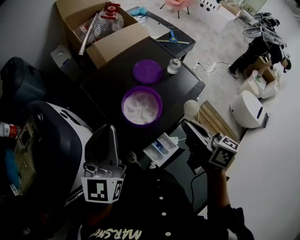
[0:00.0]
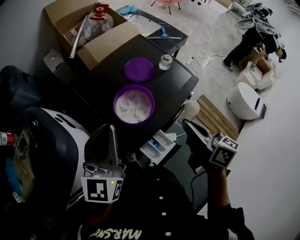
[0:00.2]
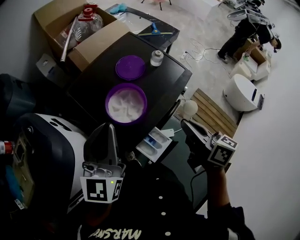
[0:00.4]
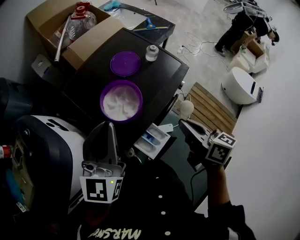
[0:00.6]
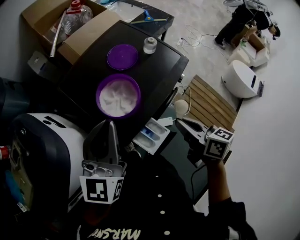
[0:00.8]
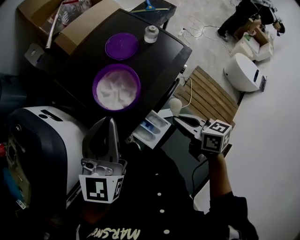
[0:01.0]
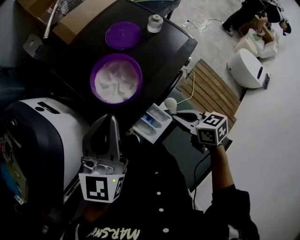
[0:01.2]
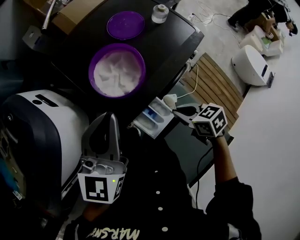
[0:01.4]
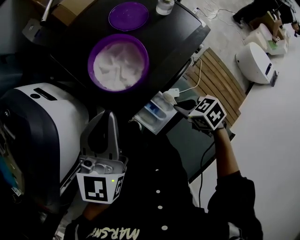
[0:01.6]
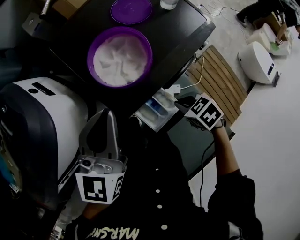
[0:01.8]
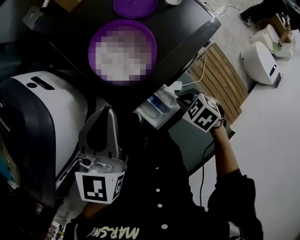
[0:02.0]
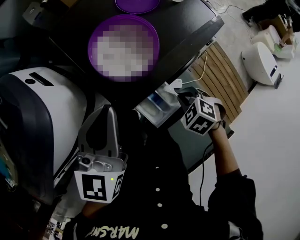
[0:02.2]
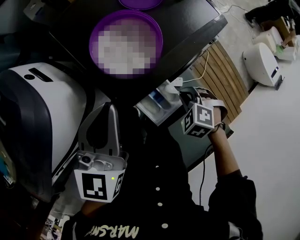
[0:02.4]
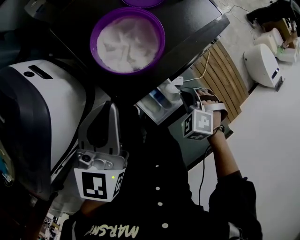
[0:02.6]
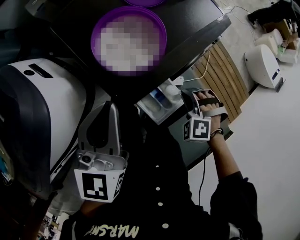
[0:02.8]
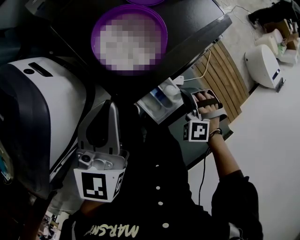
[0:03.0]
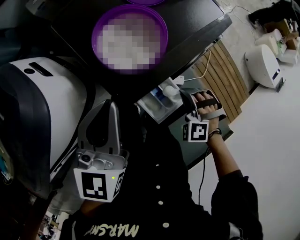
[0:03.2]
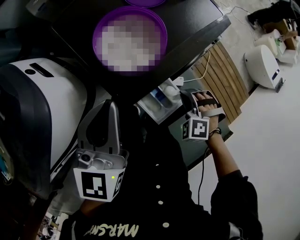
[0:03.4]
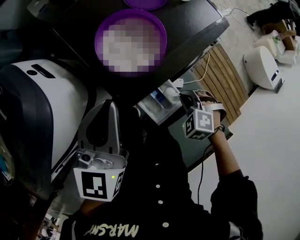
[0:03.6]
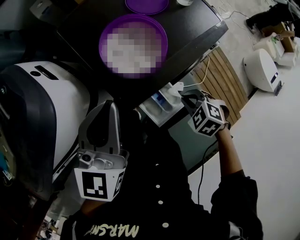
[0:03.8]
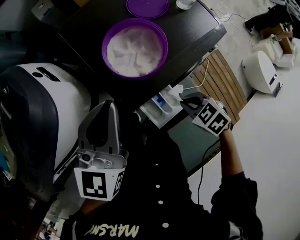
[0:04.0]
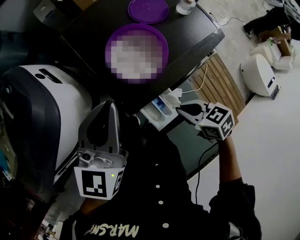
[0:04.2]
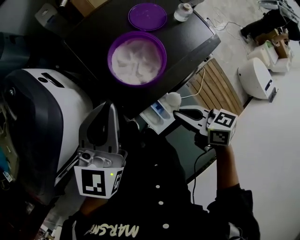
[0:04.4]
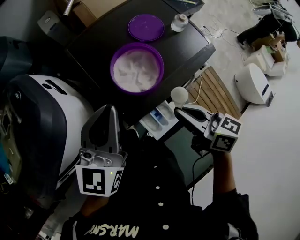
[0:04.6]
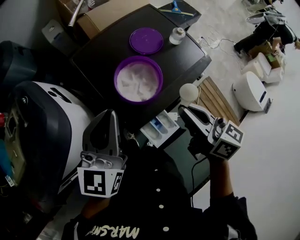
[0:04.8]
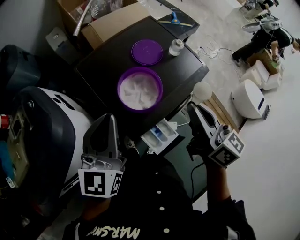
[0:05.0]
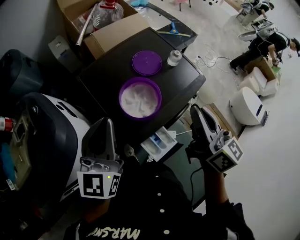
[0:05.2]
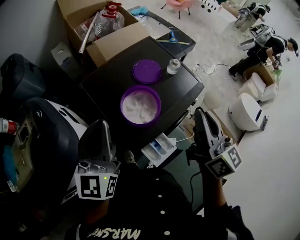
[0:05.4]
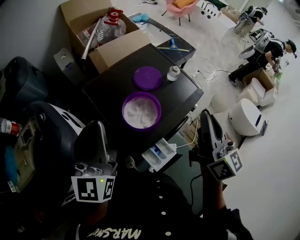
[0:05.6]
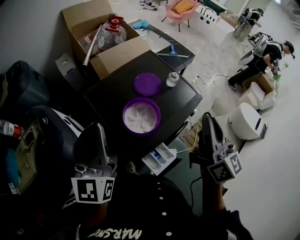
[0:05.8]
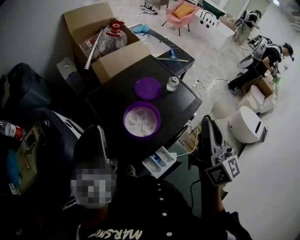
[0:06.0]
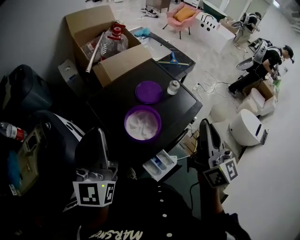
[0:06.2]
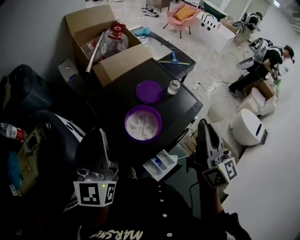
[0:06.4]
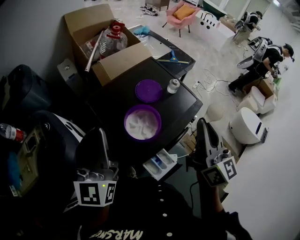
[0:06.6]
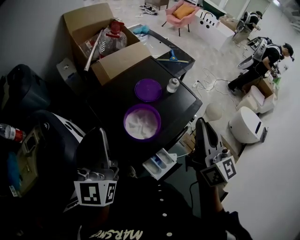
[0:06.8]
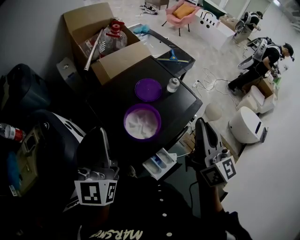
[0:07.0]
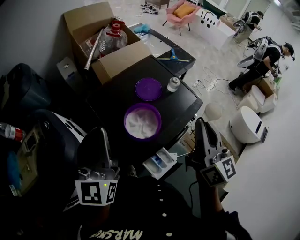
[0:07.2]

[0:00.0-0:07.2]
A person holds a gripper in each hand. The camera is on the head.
0:00.0 to 0:01.4: The right gripper shifts about 25 cm downward, and tips its fingers downward by approximately 40 degrees, while the left gripper heads downward and to the right, covering roughly 10 cm.
0:01.4 to 0:02.8: The right gripper shifts approximately 5 cm downward, and twists about 70 degrees counterclockwise, seen from behind, while the left gripper changes place by about 5 cm.
0:02.8 to 0:04.4: The right gripper heads upward, covering roughly 15 cm, and rotates around the line of its fingers by about 80 degrees, clockwise from behind. The left gripper changes place by roughly 5 cm.
0:04.4 to 0:05.8: The right gripper is displaced upward by some 25 cm, and points its fingers roughly 40 degrees further upward; the left gripper is displaced upward and to the left by roughly 15 cm, and turns by some 20 degrees.
0:05.8 to 0:07.2: There are only small adjustments of the grippers.

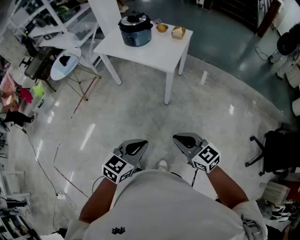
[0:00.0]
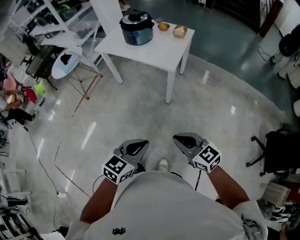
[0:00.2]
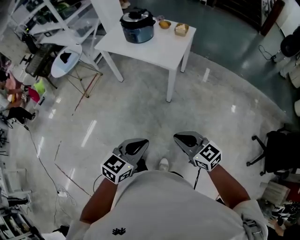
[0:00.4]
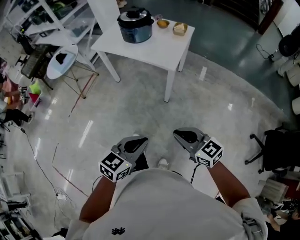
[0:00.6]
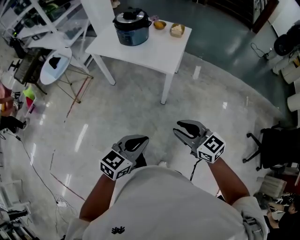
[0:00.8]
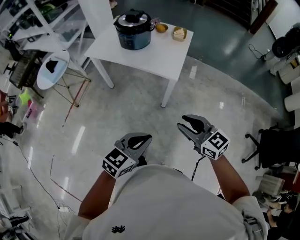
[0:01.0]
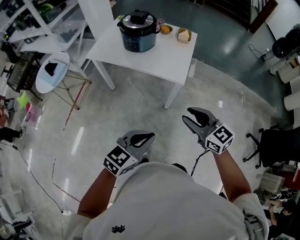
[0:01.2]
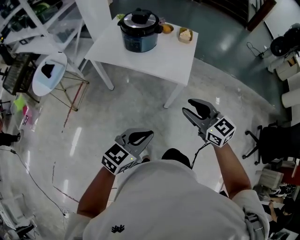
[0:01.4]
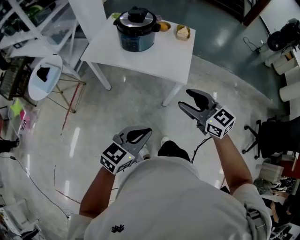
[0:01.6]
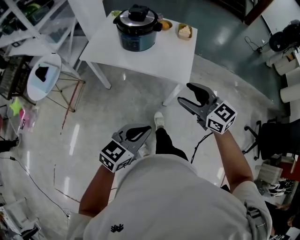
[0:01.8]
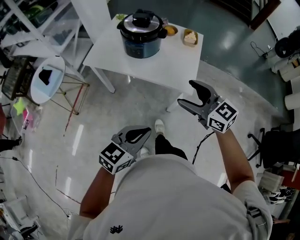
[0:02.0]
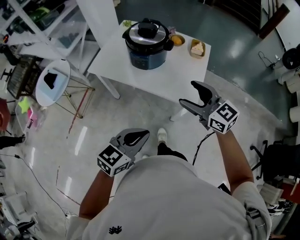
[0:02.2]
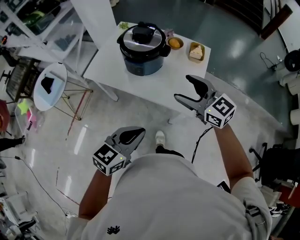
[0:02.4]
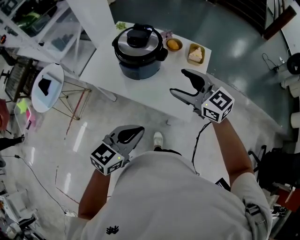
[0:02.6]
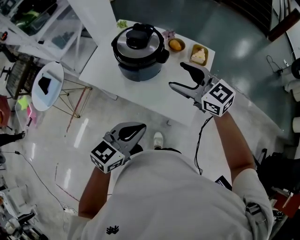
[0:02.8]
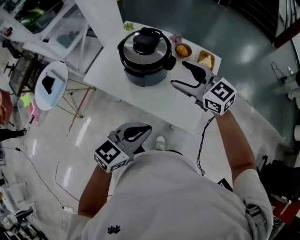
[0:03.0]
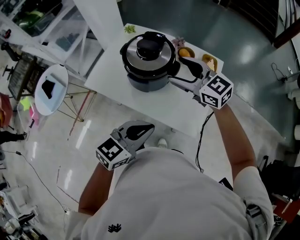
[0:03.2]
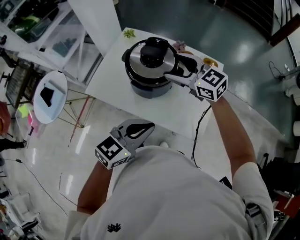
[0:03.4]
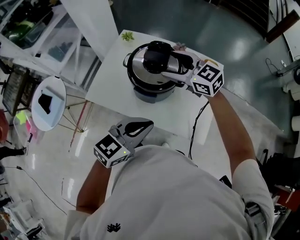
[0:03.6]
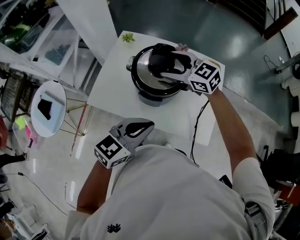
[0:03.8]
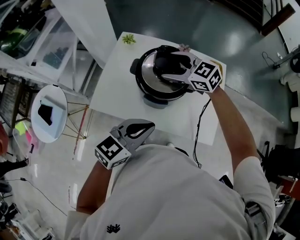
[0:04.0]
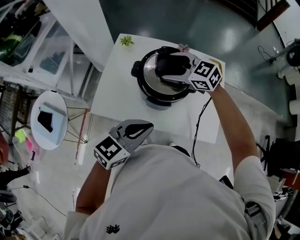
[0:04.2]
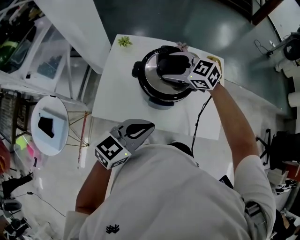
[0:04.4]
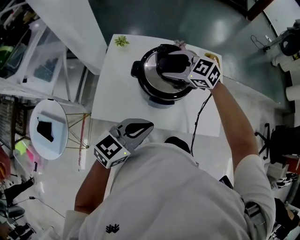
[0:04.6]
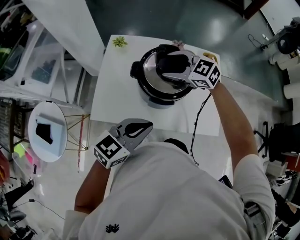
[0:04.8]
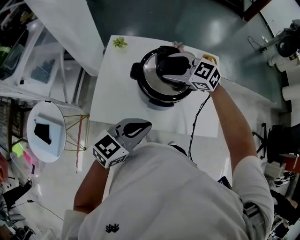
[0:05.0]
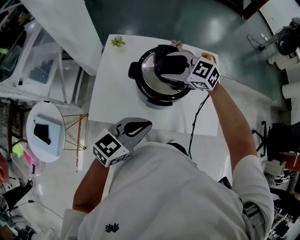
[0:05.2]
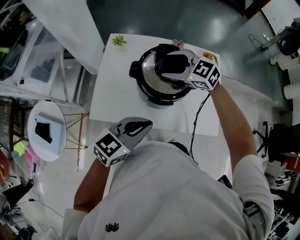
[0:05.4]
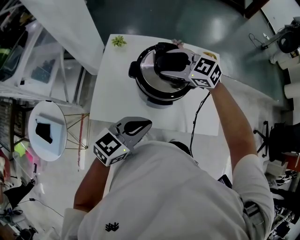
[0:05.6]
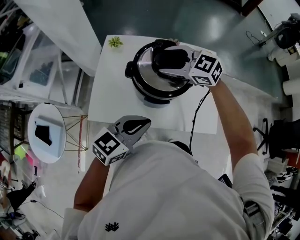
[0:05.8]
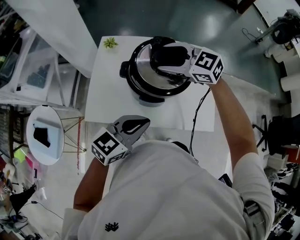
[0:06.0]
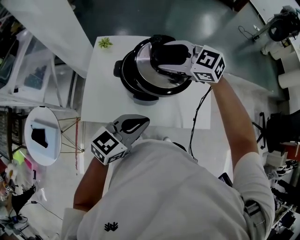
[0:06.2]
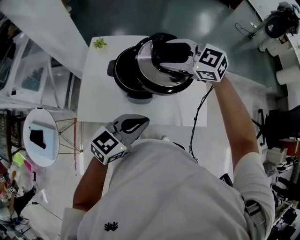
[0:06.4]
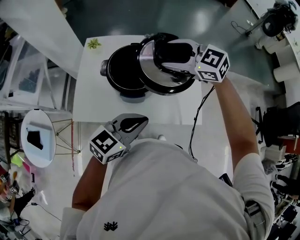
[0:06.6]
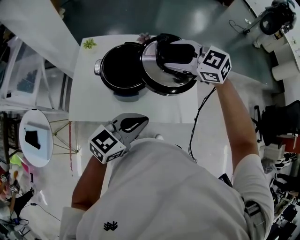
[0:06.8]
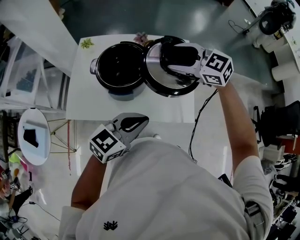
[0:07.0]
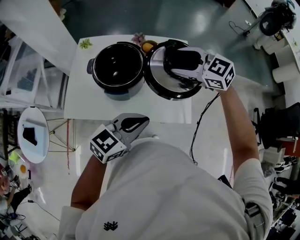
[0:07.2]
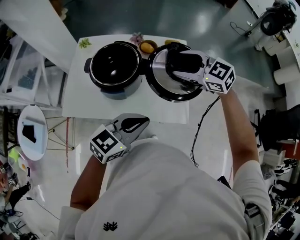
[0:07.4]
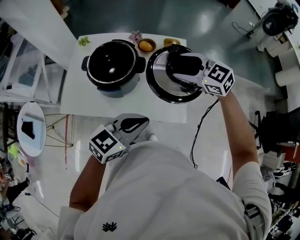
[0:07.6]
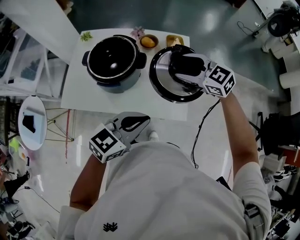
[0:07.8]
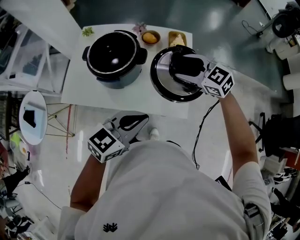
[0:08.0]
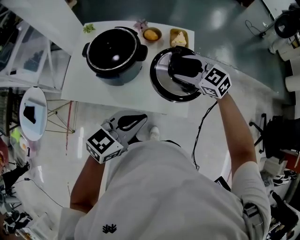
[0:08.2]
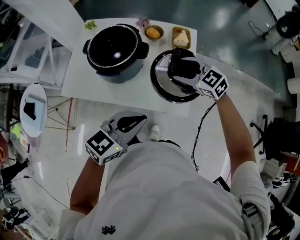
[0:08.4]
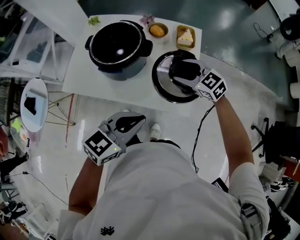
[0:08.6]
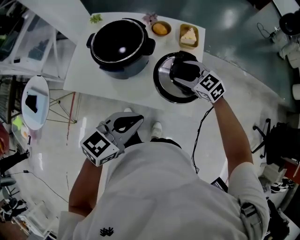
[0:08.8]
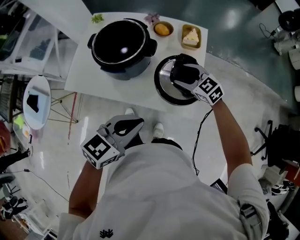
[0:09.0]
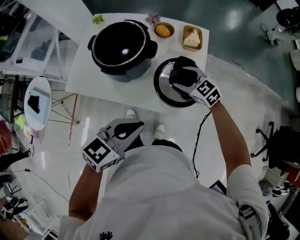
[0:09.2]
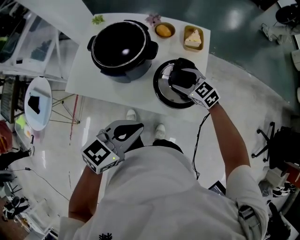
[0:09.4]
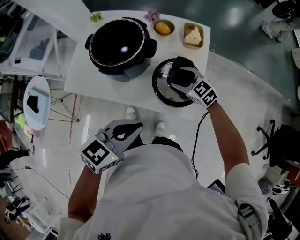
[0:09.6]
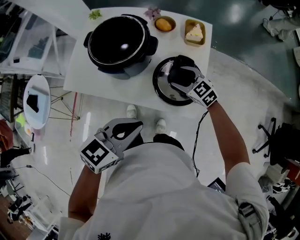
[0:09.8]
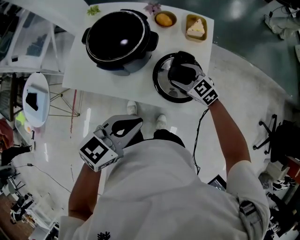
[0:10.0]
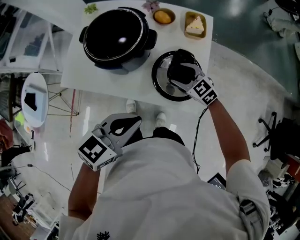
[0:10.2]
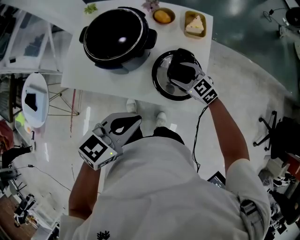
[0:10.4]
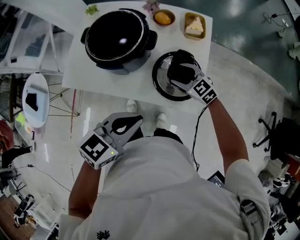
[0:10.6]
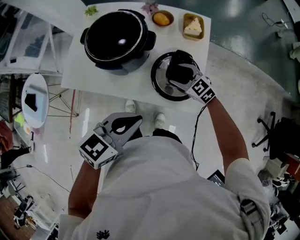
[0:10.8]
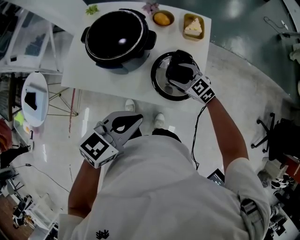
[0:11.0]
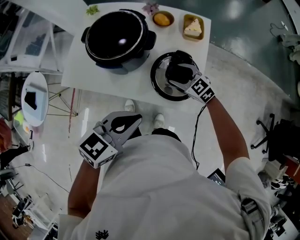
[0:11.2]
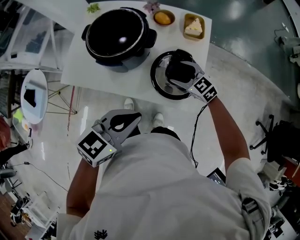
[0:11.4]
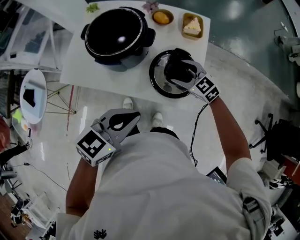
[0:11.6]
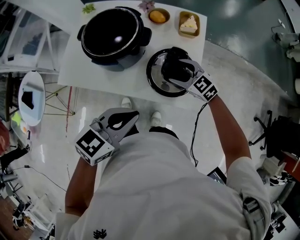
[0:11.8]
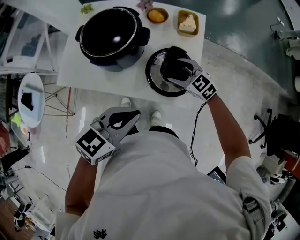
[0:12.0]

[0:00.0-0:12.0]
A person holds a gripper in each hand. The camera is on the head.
0:00.0 to 0:01.6: Both grippers move forward and to the left, some 35 cm. The right gripper opens its fingers.
0:01.6 to 0:03.0: The two grippers go some 35 cm forward.
0:03.0 to 0:04.4: The left gripper changes place by about 25 cm. Meanwhile the right gripper ends up roughly 25 cm from where it was.
0:04.4 to 0:06.0: The right gripper heads upward, covering approximately 5 cm.
0:06.0 to 0:07.6: The left gripper shifts by roughly 20 cm; the right gripper changes place by roughly 25 cm.
0:07.6 to 0:09.0: The right gripper is displaced downward by some 15 cm.
0:09.0 to 0:10.4: The right gripper shifts some 5 cm downward.
0:10.4 to 0:12.0: There are only small adjustments of the grippers.

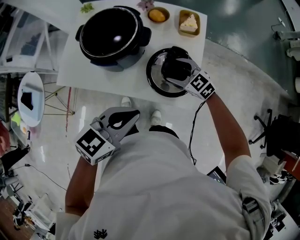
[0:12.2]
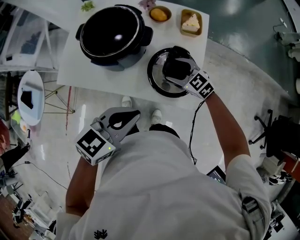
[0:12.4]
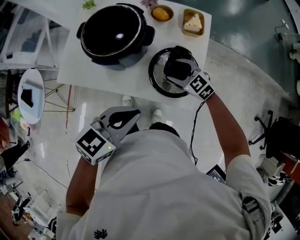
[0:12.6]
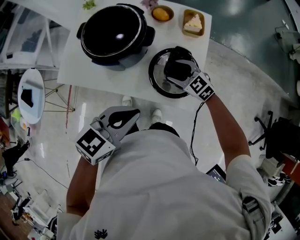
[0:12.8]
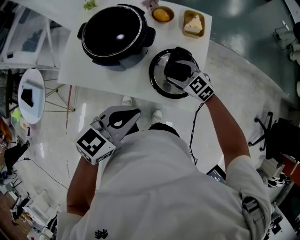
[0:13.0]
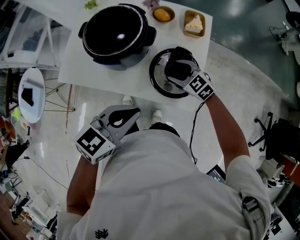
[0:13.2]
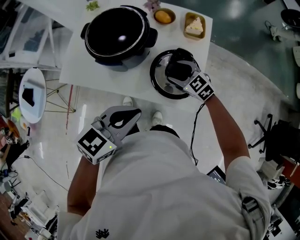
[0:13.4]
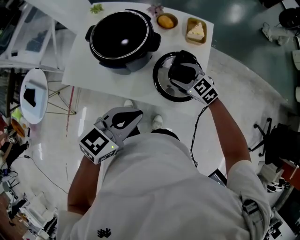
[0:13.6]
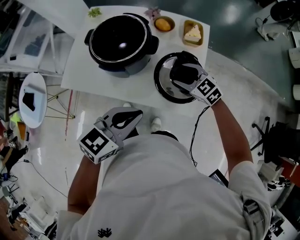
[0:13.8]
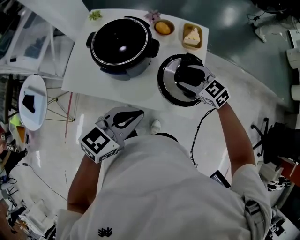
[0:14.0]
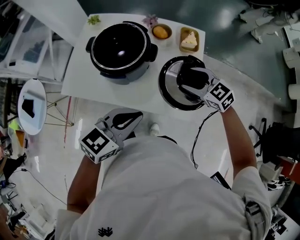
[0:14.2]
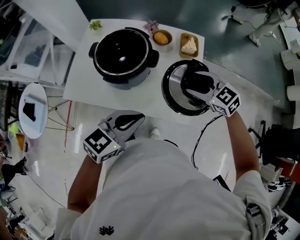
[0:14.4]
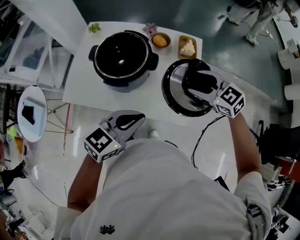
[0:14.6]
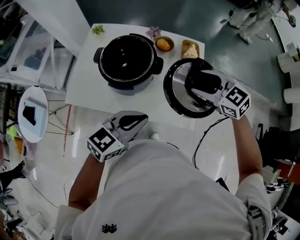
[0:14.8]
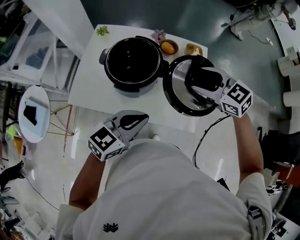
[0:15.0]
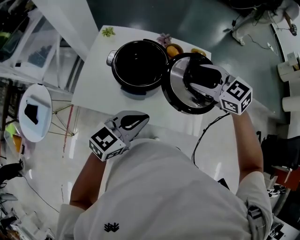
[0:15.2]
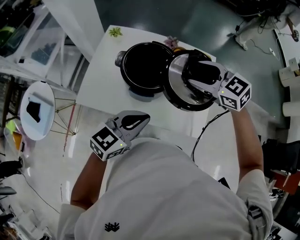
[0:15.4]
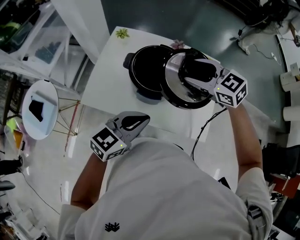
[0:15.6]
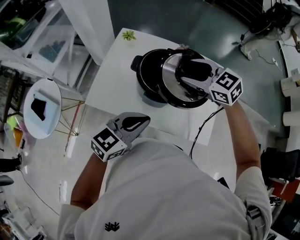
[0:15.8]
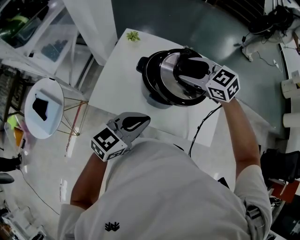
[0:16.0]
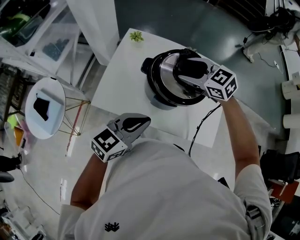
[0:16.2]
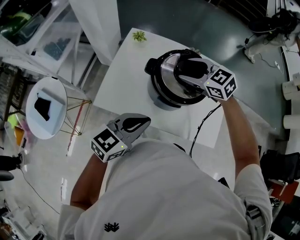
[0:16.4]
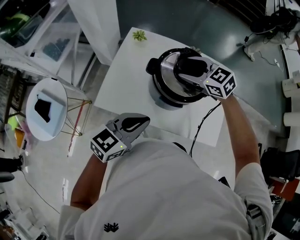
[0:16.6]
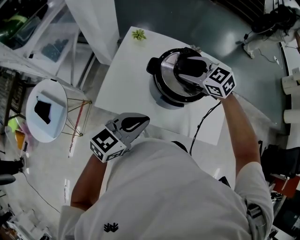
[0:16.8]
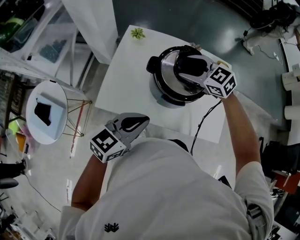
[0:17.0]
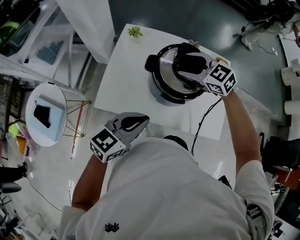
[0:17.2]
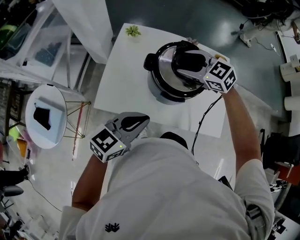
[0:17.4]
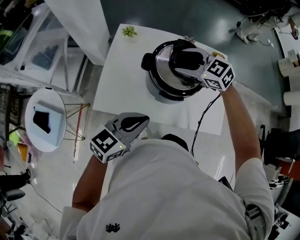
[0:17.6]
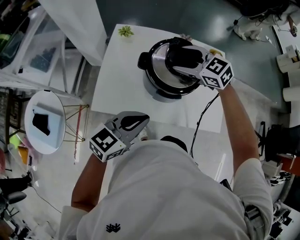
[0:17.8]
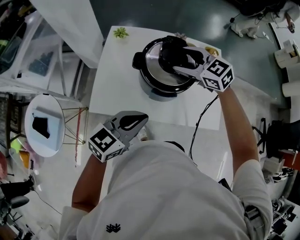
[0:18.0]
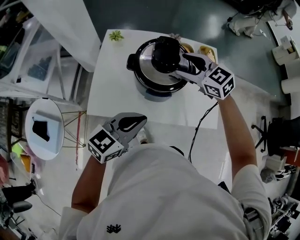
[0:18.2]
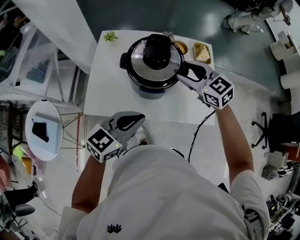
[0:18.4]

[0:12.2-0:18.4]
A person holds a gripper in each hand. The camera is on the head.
0:12.2 to 0:13.8: The grippers make only small movements.
0:13.8 to 0:15.4: The right gripper goes some 25 cm upward and to the left, while the left gripper moves to the left and forward, roughly 10 cm.
0:15.4 to 0:16.8: The right gripper travels to the left and forward by approximately 20 cm; the left gripper goes about 15 cm to the left.
0:16.8 to 0:18.4: The left gripper goes about 5 cm to the right, while the right gripper is displaced to the right and backward by roughly 15 cm, and turns by roughly 20 degrees.
